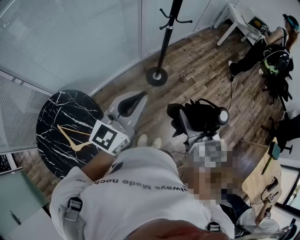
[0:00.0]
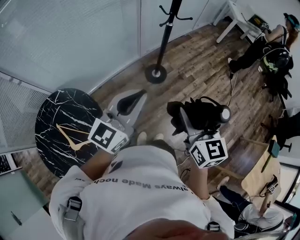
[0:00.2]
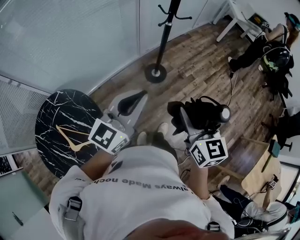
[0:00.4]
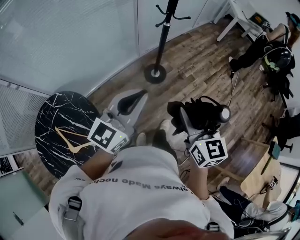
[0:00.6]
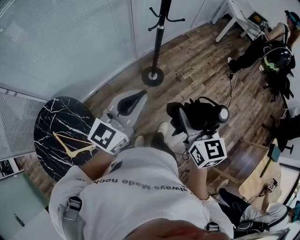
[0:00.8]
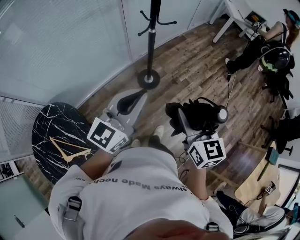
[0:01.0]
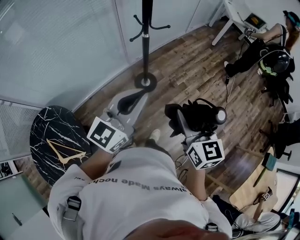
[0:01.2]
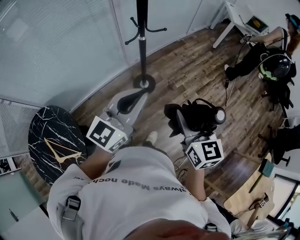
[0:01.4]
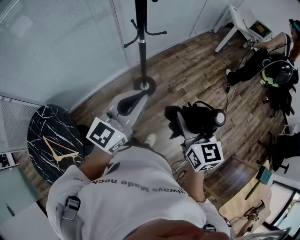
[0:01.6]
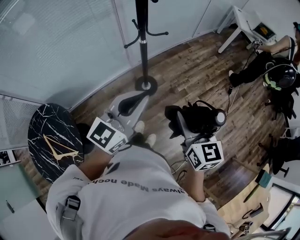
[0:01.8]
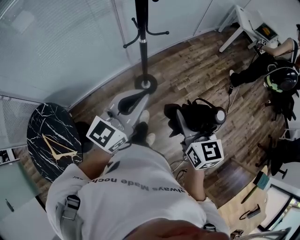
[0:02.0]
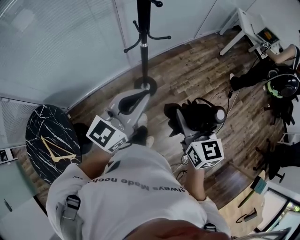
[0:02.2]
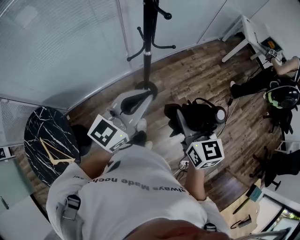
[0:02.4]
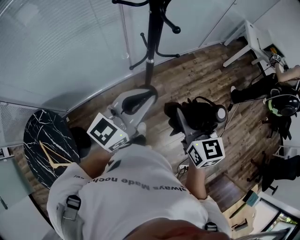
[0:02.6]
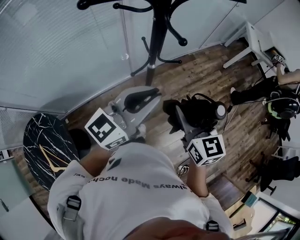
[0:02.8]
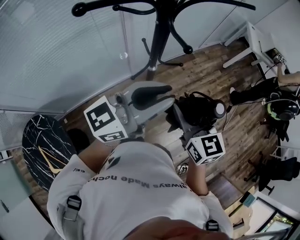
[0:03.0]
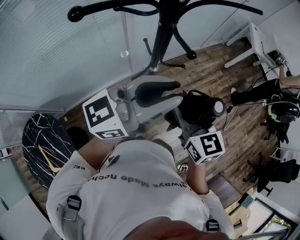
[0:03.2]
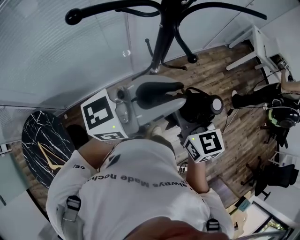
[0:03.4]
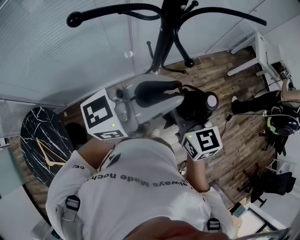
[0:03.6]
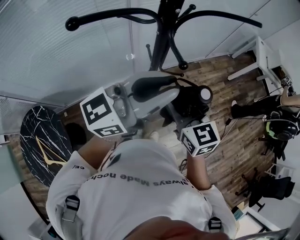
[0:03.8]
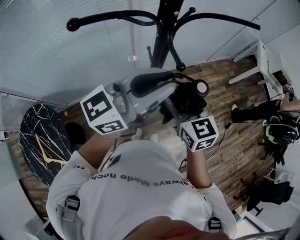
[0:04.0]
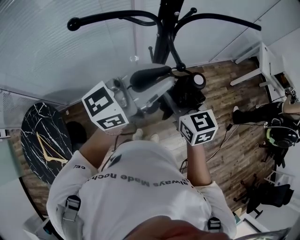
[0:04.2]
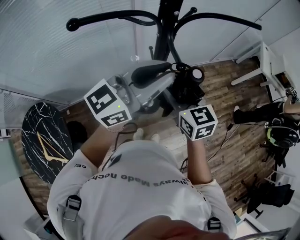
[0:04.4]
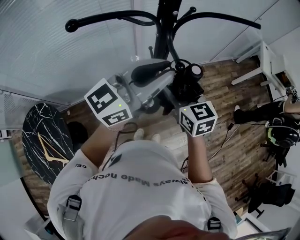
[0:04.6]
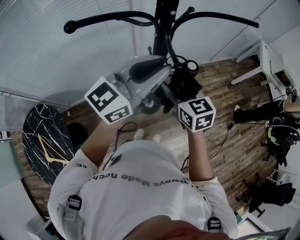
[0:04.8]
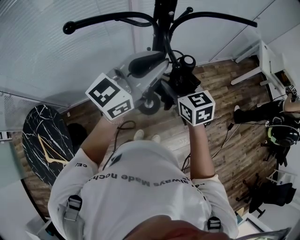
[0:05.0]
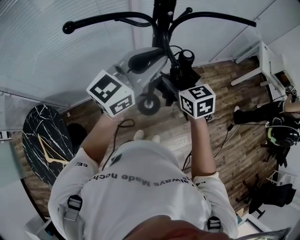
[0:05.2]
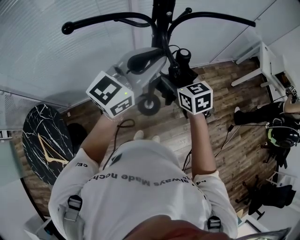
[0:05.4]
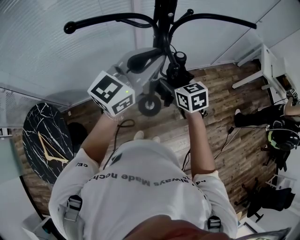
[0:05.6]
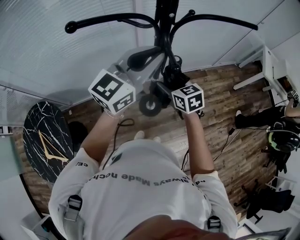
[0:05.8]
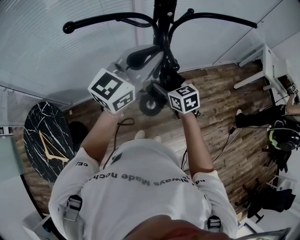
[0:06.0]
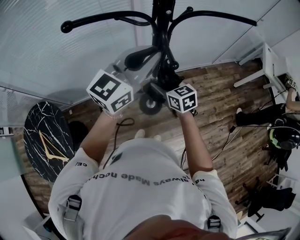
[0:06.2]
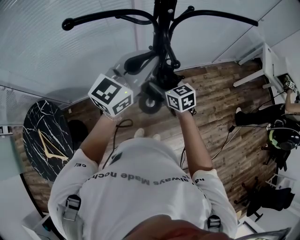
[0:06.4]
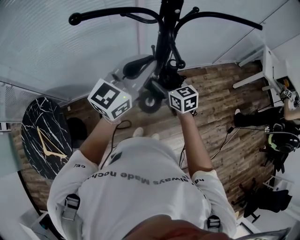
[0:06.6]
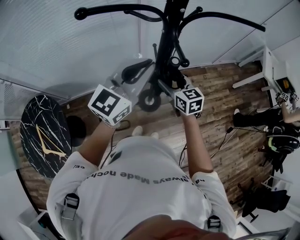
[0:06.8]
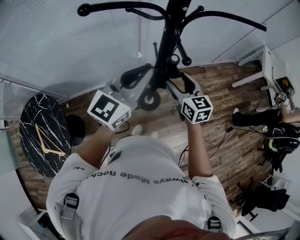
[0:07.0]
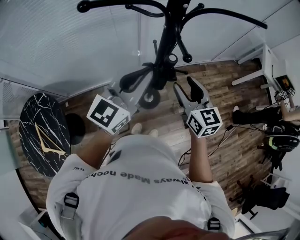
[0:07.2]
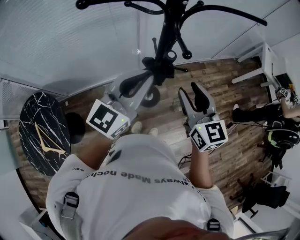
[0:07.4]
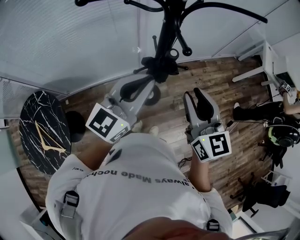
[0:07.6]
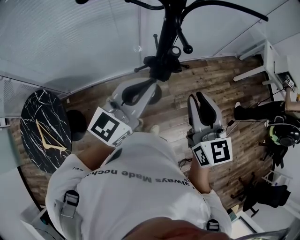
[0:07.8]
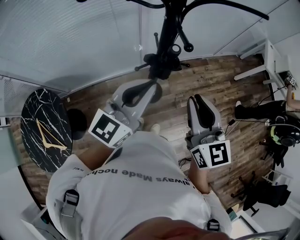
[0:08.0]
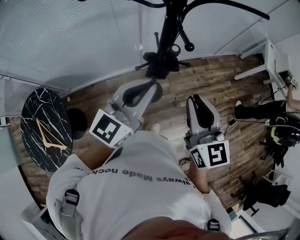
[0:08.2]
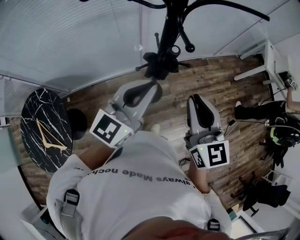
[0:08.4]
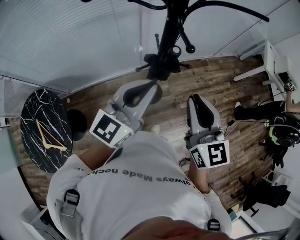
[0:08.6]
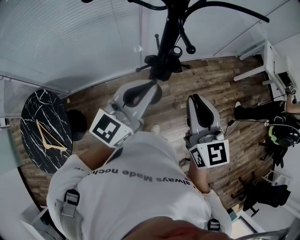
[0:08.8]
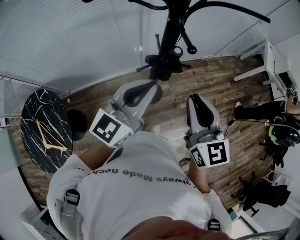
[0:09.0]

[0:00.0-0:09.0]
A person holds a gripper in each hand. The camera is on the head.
0.0 to 1.6 s: The grippers both shift forward and to the right by some 35 cm.
1.6 to 3.0 s: The right gripper is displaced forward and to the left by roughly 30 cm. Meanwhile the left gripper travels forward by about 25 cm, and changes its angle by roughly 20 degrees.
3.0 to 4.4 s: Both grippers travel together forward, about 10 cm.
4.4 to 6.0 s: The left gripper heads forward, covering approximately 5 cm, and rotates approximately 20 degrees. Meanwhile the right gripper travels downward by about 10 cm.
6.0 to 7.6 s: The left gripper moves backward and downward, about 10 cm; the right gripper goes roughly 20 cm upward, backward and to the right, changes its angle by about 30 degrees, and closes.
7.6 to 9.0 s: There are only small adjustments of the grippers.

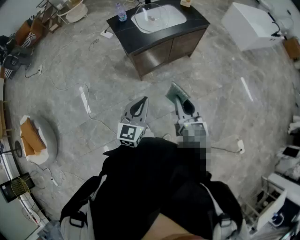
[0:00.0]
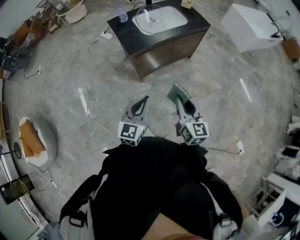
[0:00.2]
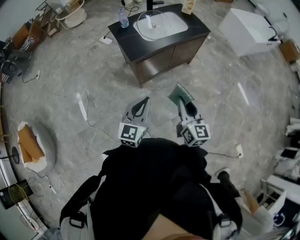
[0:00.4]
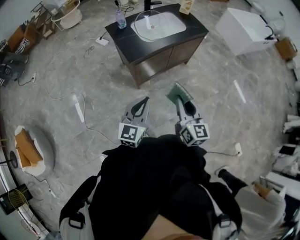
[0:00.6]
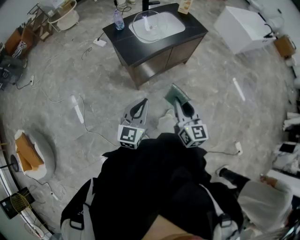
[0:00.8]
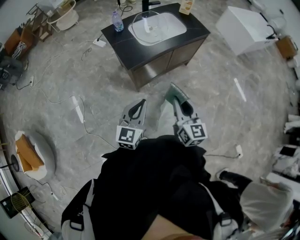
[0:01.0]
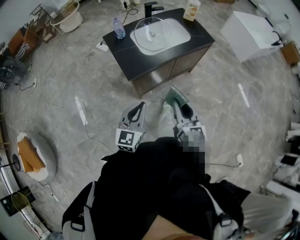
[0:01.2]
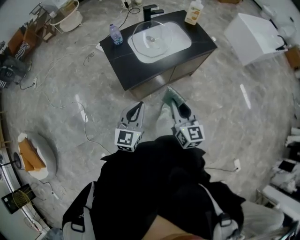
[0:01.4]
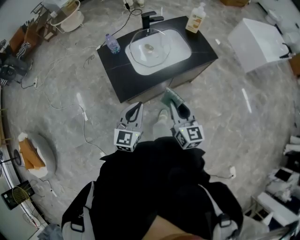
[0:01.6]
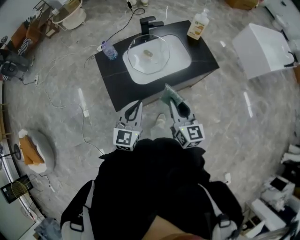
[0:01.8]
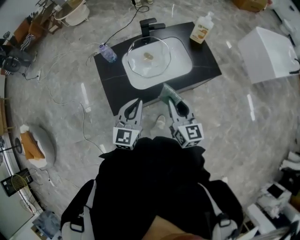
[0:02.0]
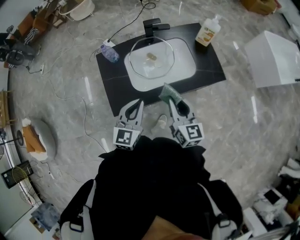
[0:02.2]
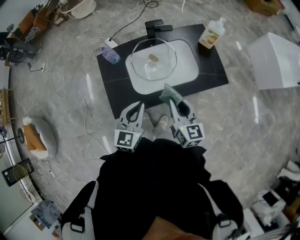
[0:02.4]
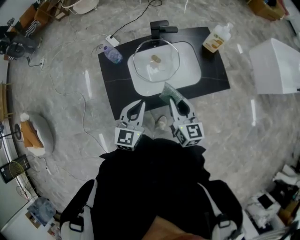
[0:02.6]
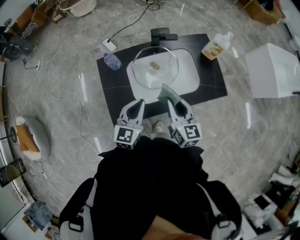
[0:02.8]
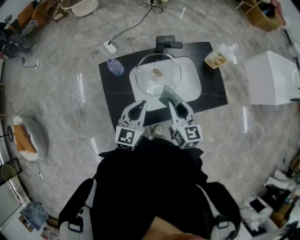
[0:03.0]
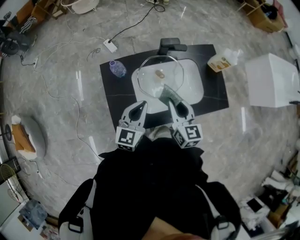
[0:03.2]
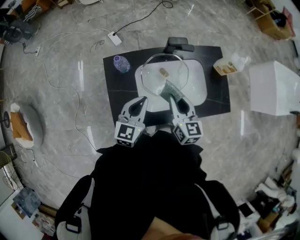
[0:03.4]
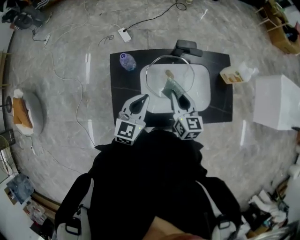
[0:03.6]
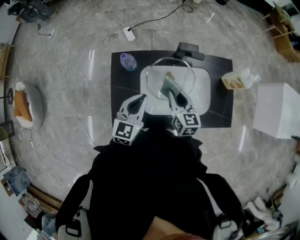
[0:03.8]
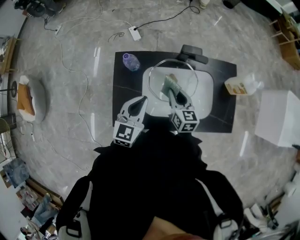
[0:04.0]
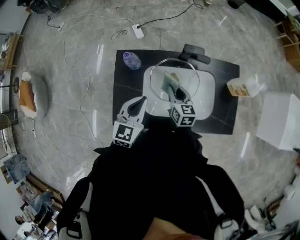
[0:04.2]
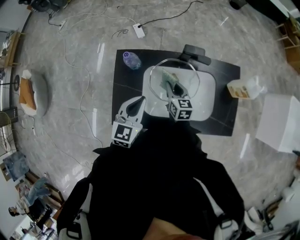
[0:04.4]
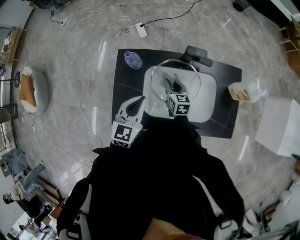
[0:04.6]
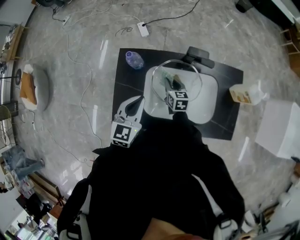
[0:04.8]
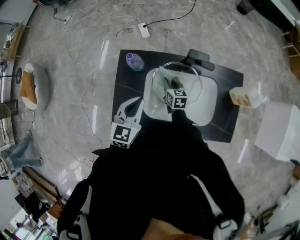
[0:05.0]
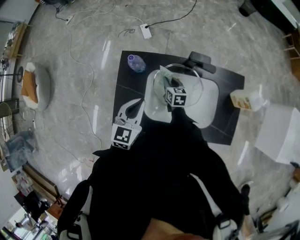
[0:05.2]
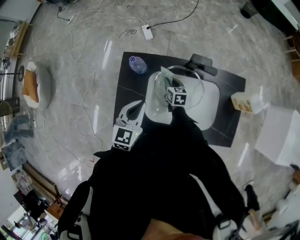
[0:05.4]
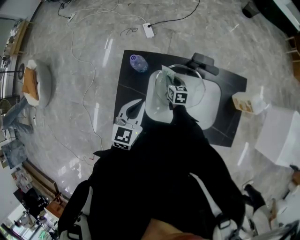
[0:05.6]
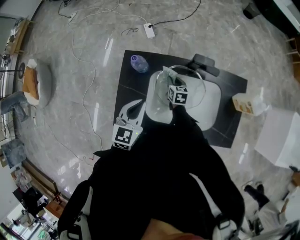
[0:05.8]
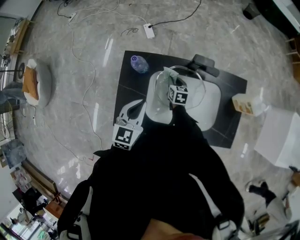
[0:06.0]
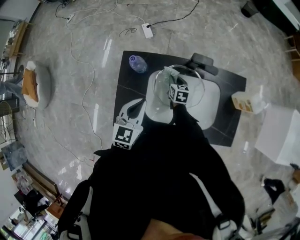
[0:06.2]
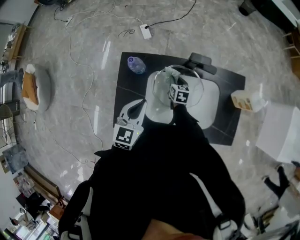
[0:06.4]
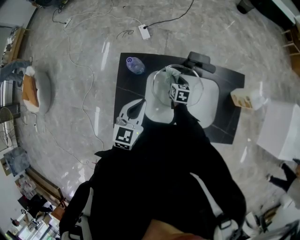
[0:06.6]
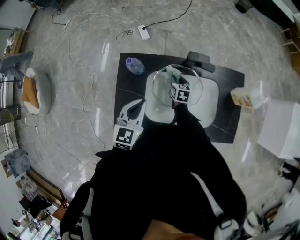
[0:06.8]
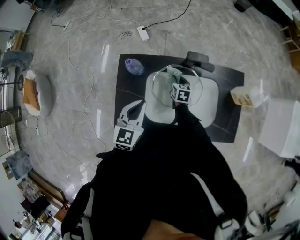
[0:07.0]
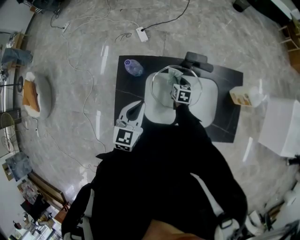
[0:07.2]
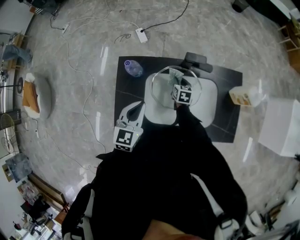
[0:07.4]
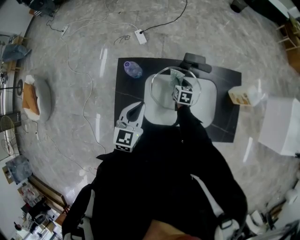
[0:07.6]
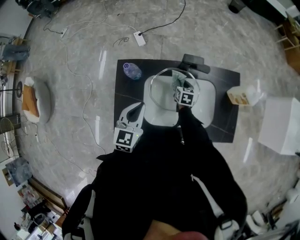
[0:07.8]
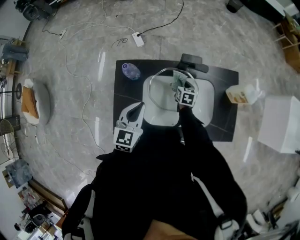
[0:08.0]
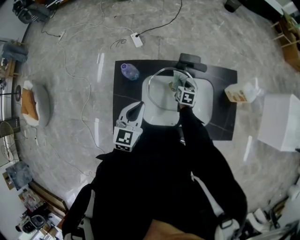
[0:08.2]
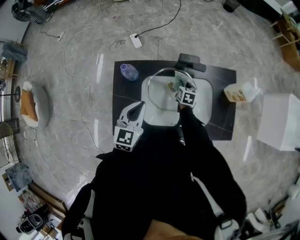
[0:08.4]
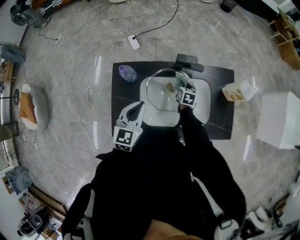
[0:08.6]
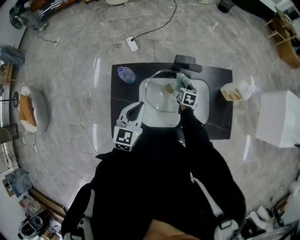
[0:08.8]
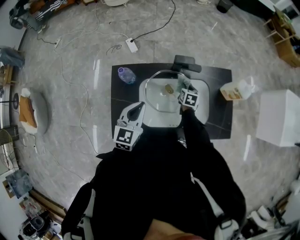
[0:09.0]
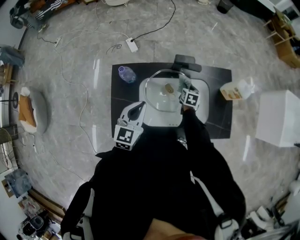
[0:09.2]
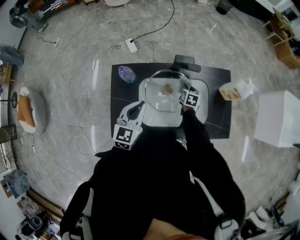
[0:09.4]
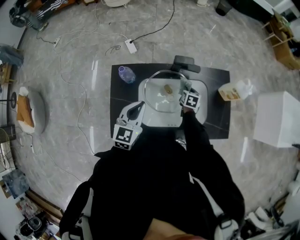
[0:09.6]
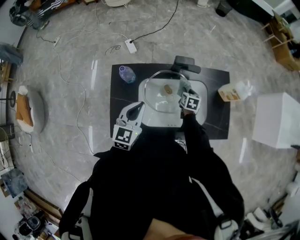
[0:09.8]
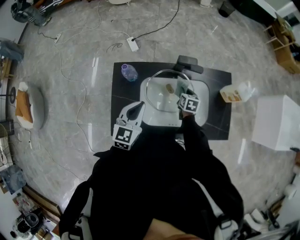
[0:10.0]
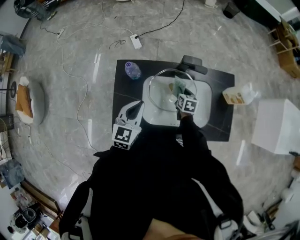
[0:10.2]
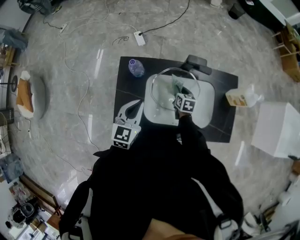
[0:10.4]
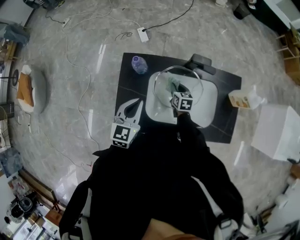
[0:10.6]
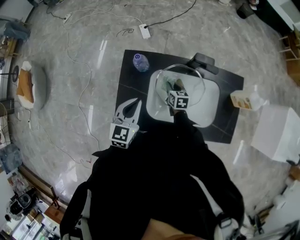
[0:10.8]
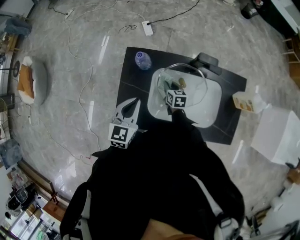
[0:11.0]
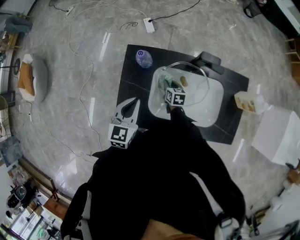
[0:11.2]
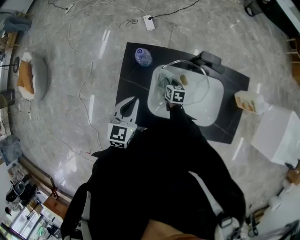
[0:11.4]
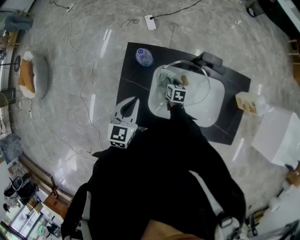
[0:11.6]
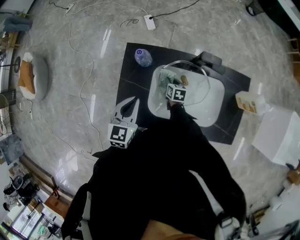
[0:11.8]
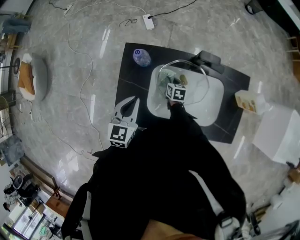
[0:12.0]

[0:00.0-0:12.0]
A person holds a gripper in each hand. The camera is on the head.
0.0 to 1.6 s: Both grippers move forward, roughly 35 cm.
1.6 to 3.0 s: Both grippers move forward, some 30 cm.
3.0 to 4.4 s: The left gripper travels forward by roughly 5 cm. The right gripper goes some 20 cm forward and downward, and turns by roughly 20 degrees.
4.4 to 6.0 s: The right gripper shifts some 15 cm downward and forward.
6.0 to 7.6 s: The right gripper shifts approximately 10 cm to the right.
7.6 to 9.0 s: The right gripper is displaced to the right by roughly 10 cm.
9.0 to 10.4 s: The right gripper moves to the left, some 10 cm.
10.4 to 12.0 s: The right gripper goes approximately 10 cm to the left and downward.

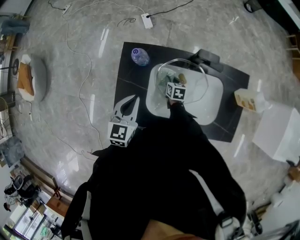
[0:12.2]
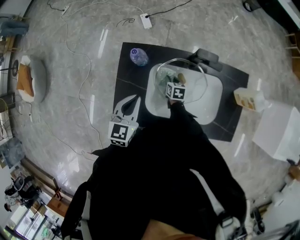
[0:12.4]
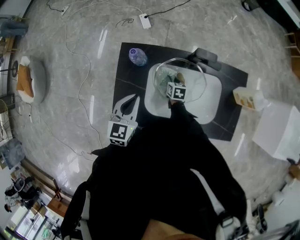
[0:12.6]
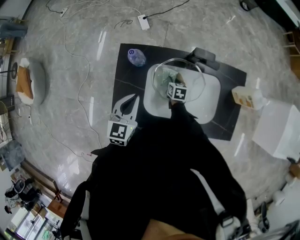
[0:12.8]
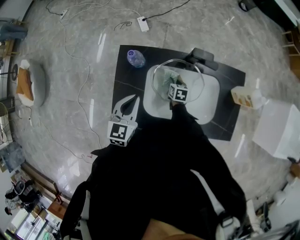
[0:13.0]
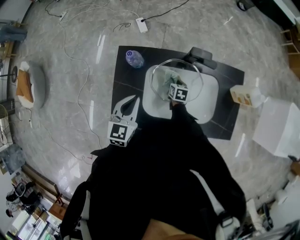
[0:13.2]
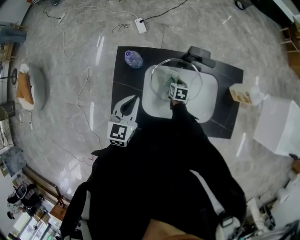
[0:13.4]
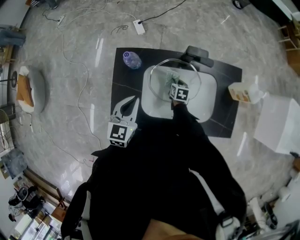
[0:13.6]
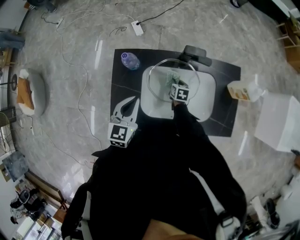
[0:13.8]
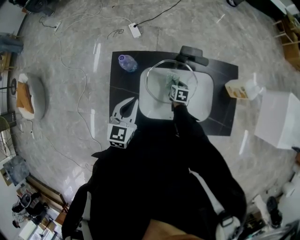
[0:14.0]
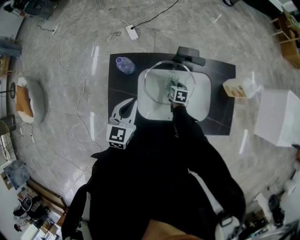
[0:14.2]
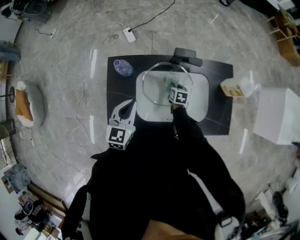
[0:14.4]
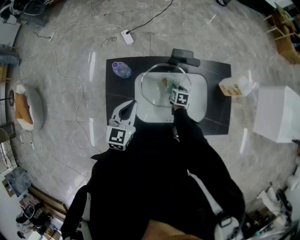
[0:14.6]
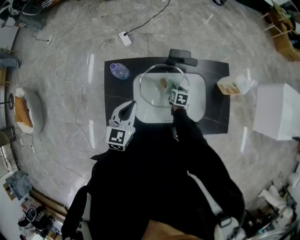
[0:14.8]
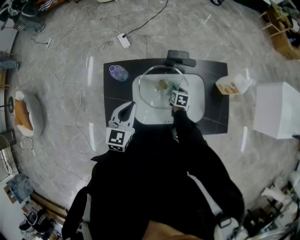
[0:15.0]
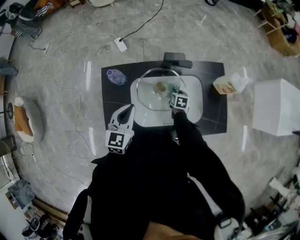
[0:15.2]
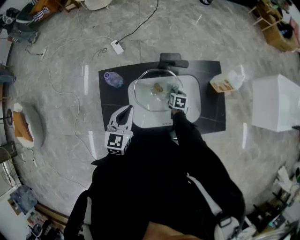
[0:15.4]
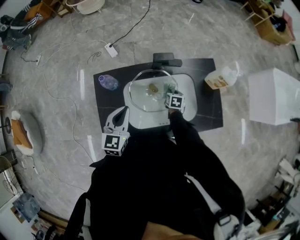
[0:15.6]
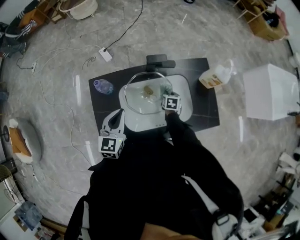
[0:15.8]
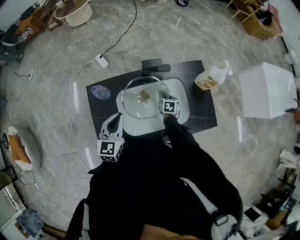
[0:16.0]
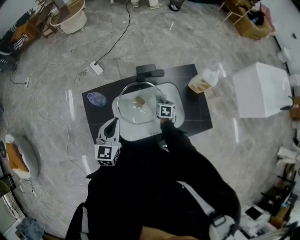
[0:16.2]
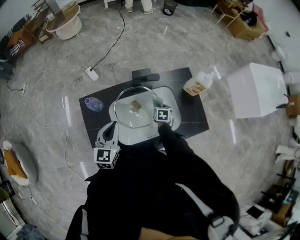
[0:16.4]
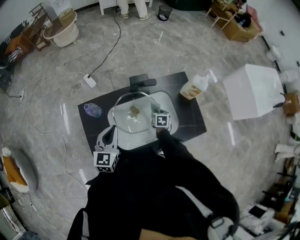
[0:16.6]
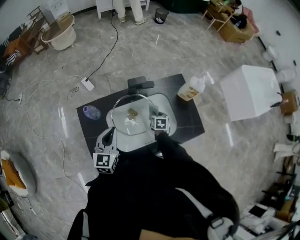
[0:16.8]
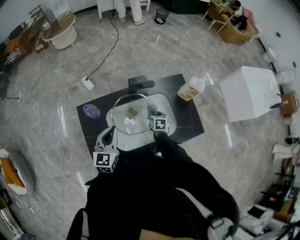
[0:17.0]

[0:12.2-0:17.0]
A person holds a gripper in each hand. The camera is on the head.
12.2 to 13.8 s: The right gripper travels to the right by some 10 cm.
13.8 to 15.4 s: The right gripper heads to the right, covering roughly 10 cm.
15.4 to 17.0 s: The right gripper goes about 5 cm upward.
